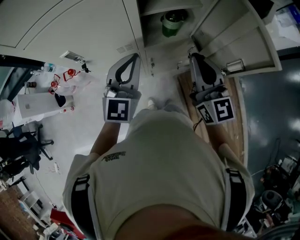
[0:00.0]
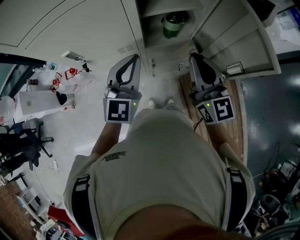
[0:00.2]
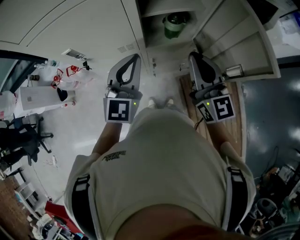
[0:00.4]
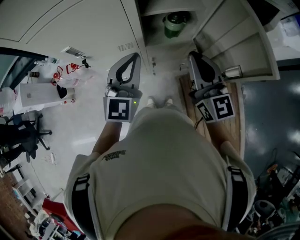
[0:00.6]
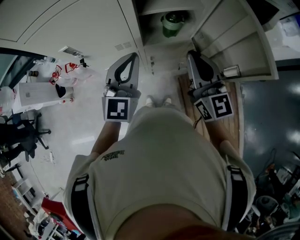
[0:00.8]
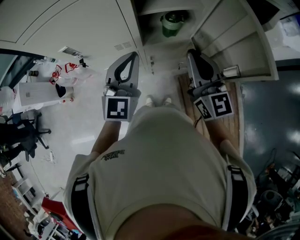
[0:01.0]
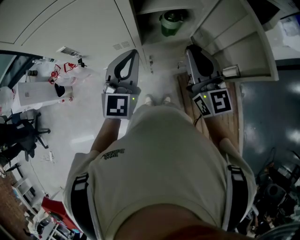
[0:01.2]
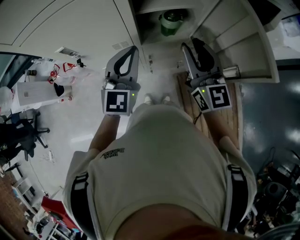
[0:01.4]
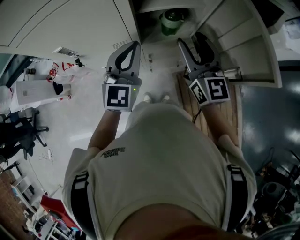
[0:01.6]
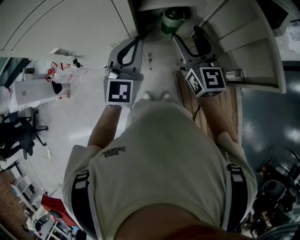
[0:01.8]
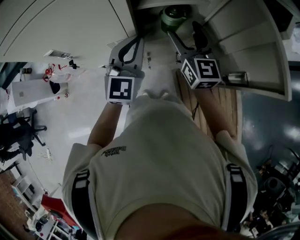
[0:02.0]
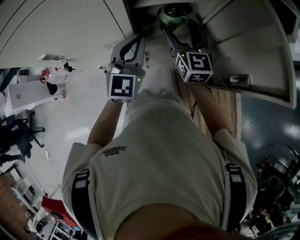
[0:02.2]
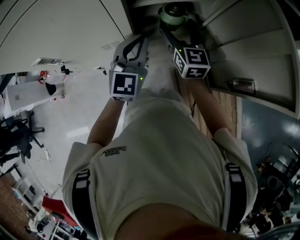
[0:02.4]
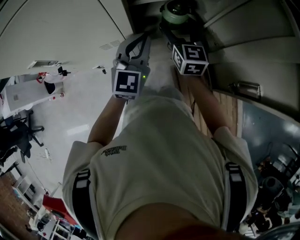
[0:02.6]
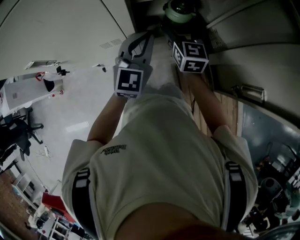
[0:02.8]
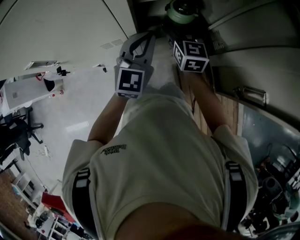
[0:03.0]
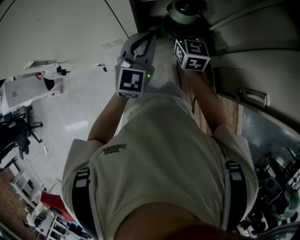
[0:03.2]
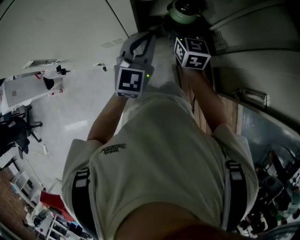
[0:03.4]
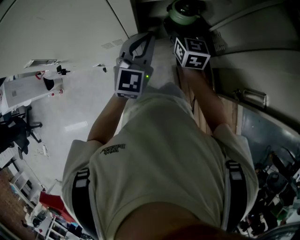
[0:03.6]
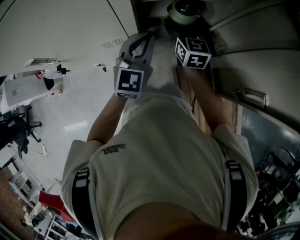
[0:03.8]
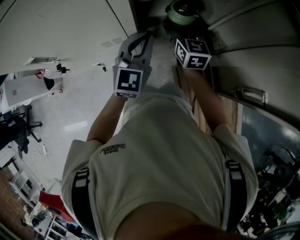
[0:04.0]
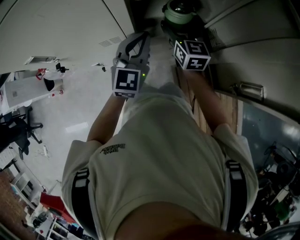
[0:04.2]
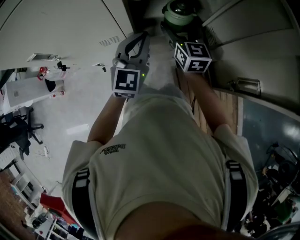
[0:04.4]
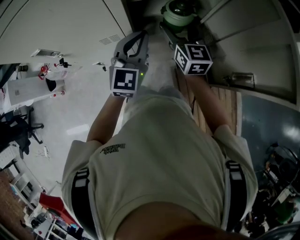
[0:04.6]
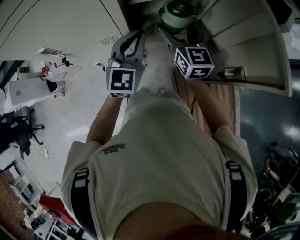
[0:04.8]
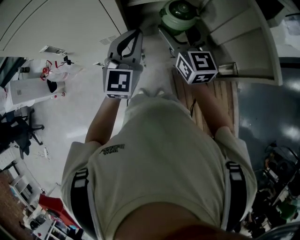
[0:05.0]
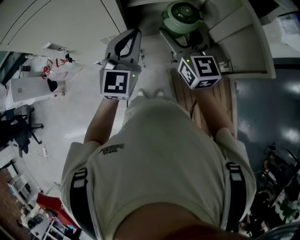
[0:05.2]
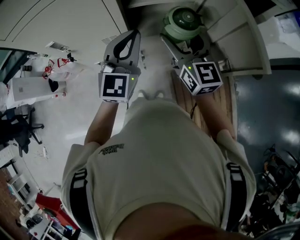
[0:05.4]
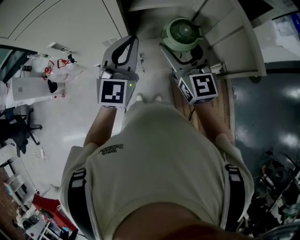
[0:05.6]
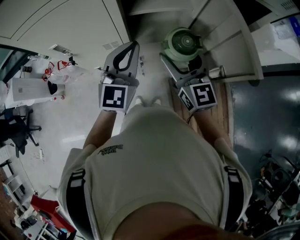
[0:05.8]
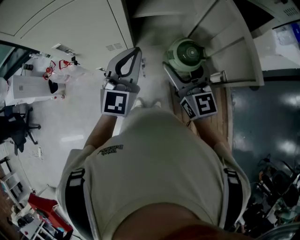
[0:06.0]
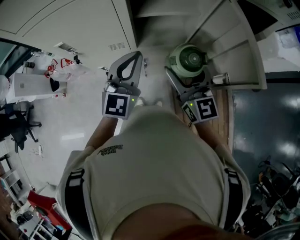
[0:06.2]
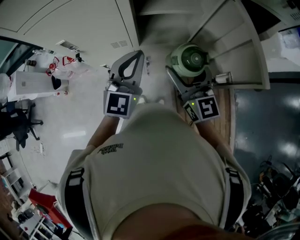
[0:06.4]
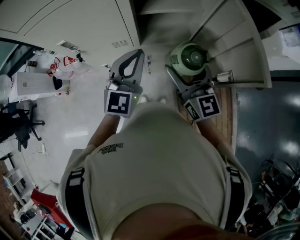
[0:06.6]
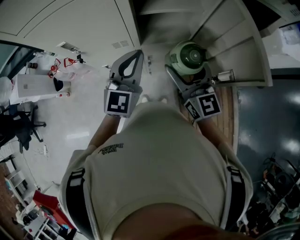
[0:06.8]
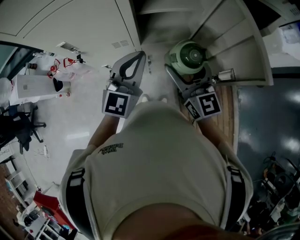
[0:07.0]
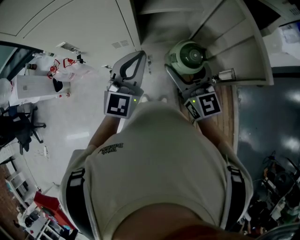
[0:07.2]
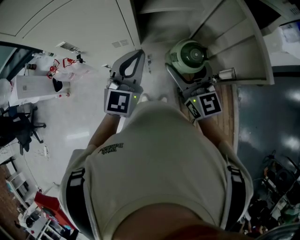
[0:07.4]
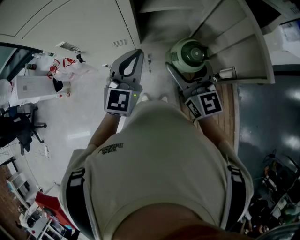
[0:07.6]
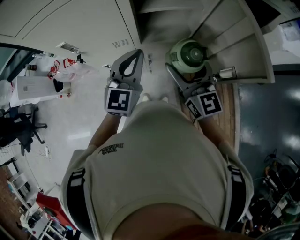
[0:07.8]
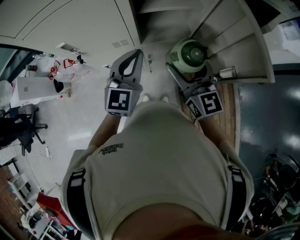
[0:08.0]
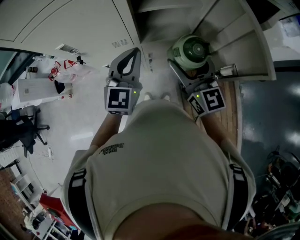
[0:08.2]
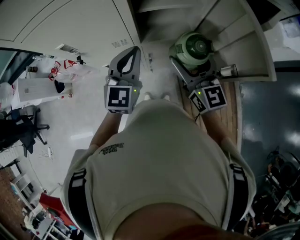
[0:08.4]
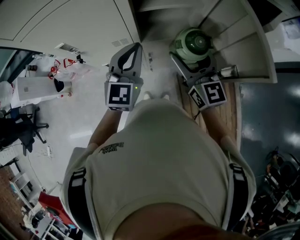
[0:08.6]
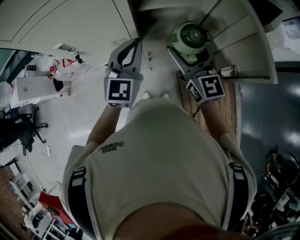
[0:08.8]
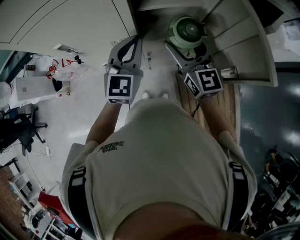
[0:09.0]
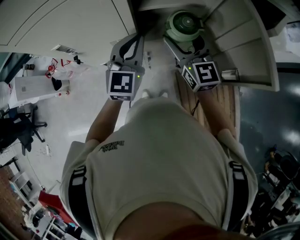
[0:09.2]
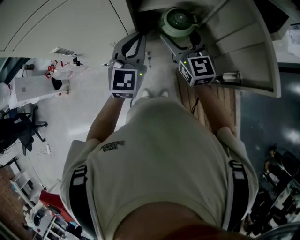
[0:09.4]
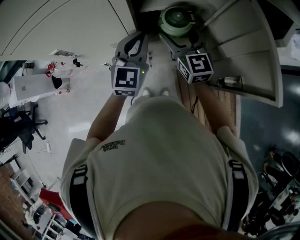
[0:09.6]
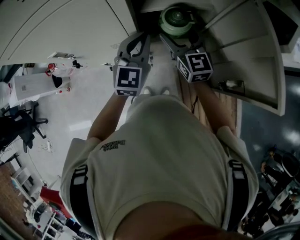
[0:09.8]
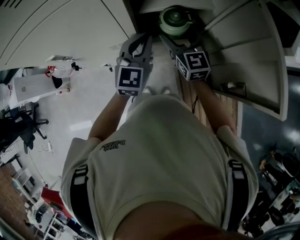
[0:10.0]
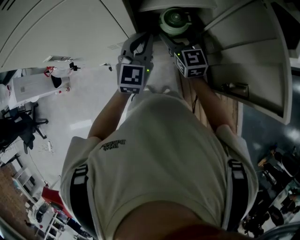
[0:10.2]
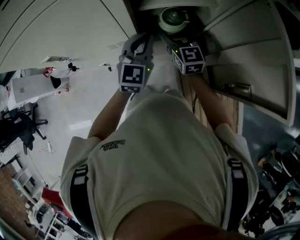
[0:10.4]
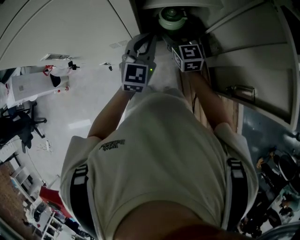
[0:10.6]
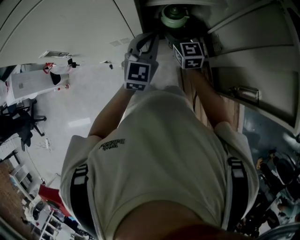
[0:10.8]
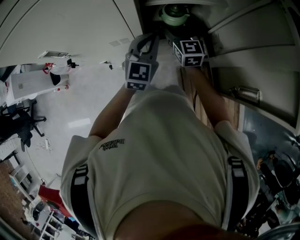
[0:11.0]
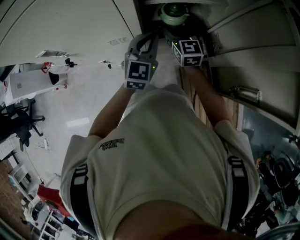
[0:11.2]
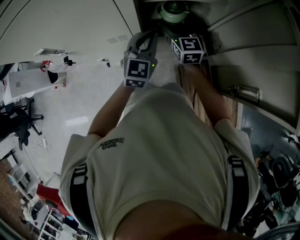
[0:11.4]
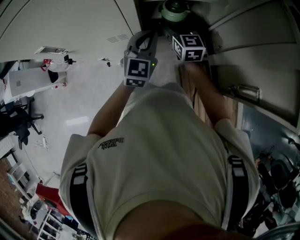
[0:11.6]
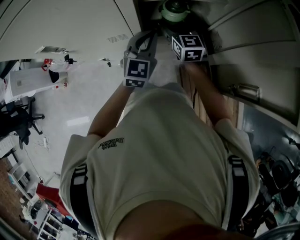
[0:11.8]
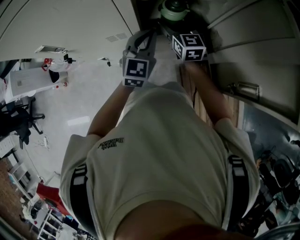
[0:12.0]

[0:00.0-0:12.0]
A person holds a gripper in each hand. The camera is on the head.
0:00.0 to 0:01.6: The right gripper goes some 5 cm forward, and opens.
0:01.6 to 0:03.0: The right gripper travels downward and forward by some 25 cm, and opens; the left gripper is displaced downward and forward by roughly 15 cm.
0:03.0 to 0:04.4: The grippers make only small movements.
0:04.4 to 0:06.0: The left gripper is displaced upward and backward by about 15 cm. The right gripper heads backward and upward, covering about 25 cm.
0:06.0 to 0:07.6: There are only small adjustments of the grippers.
0:07.6 to 0:09.0: The right gripper moves forward, some 5 cm.
0:09.0 to 0:10.4: Both grippers travel together downward and forward, approximately 15 cm.
0:10.4 to 0:12.0: The left gripper moves downward, roughly 5 cm. The right gripper shifts by about 5 cm.

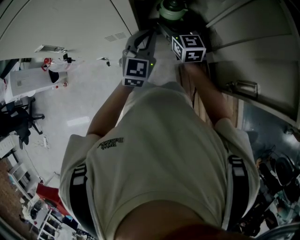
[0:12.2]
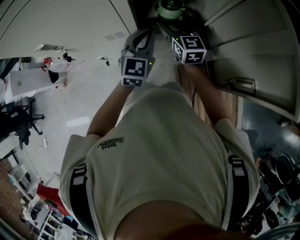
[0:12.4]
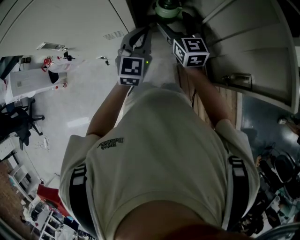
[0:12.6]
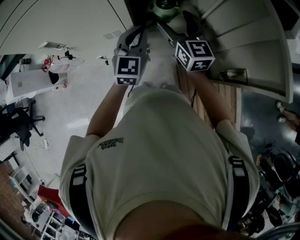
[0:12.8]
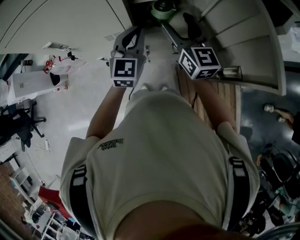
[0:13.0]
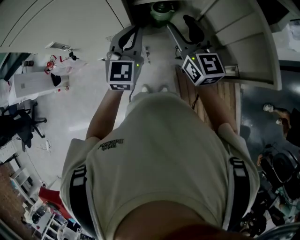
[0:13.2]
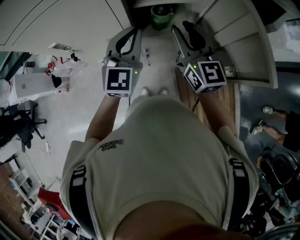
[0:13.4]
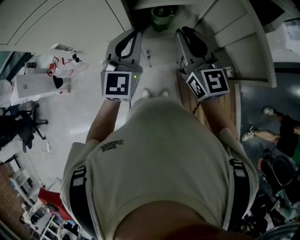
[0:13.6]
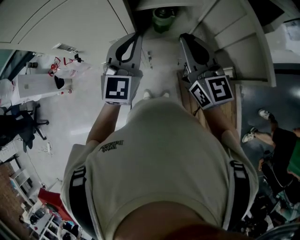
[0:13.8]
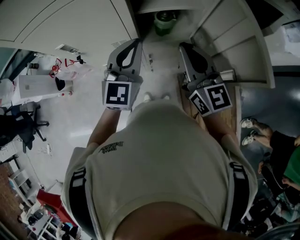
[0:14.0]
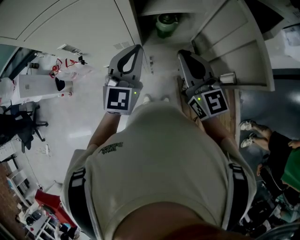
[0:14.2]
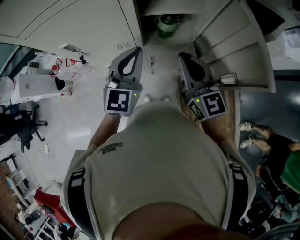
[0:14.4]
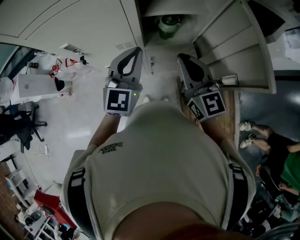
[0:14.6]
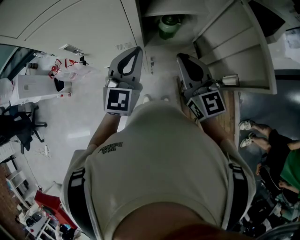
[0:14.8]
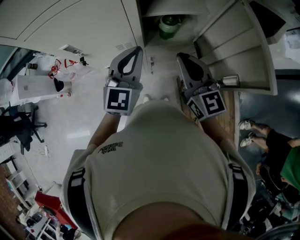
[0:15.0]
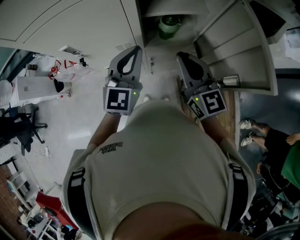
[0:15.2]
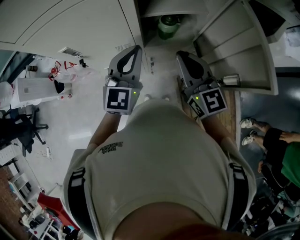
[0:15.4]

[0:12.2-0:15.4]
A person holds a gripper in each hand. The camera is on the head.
0:12.2 to 0:13.8: The two grippers go roughly 20 cm upward and backward. The right gripper closes its fingers.
0:13.8 to 0:15.4: The right gripper ends up roughly 5 cm from where it was.

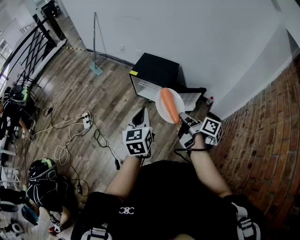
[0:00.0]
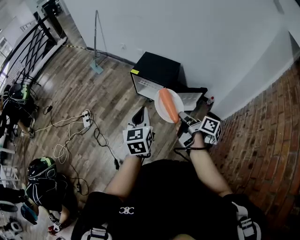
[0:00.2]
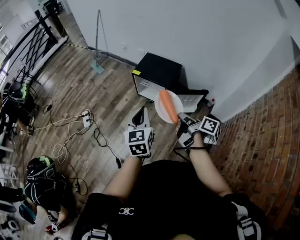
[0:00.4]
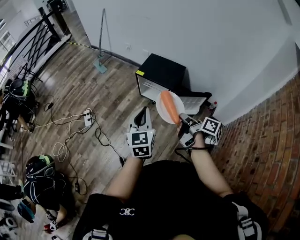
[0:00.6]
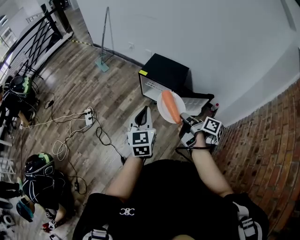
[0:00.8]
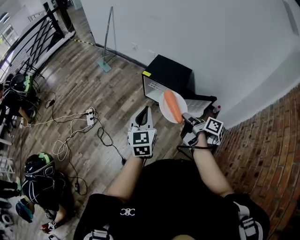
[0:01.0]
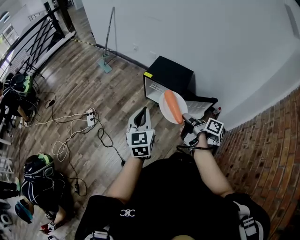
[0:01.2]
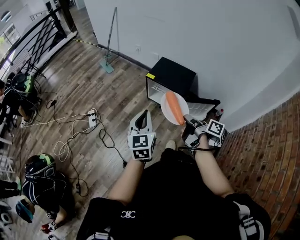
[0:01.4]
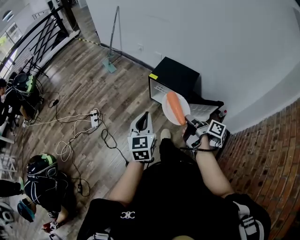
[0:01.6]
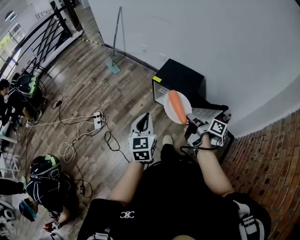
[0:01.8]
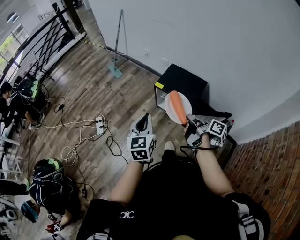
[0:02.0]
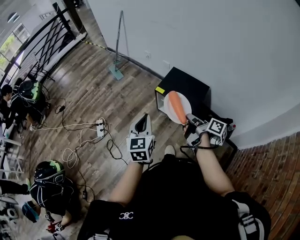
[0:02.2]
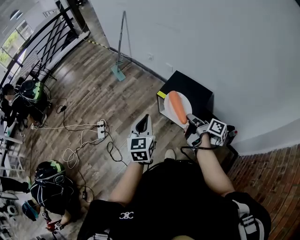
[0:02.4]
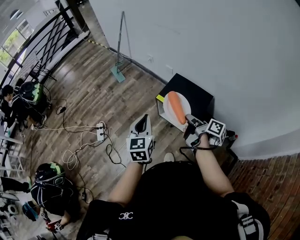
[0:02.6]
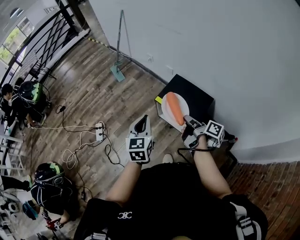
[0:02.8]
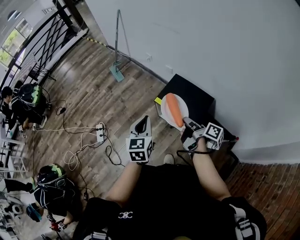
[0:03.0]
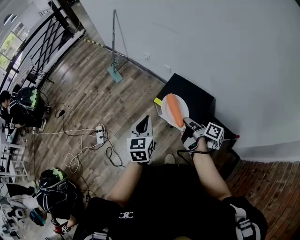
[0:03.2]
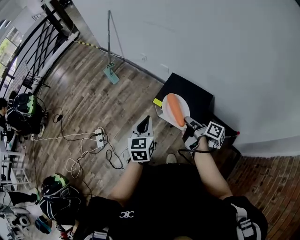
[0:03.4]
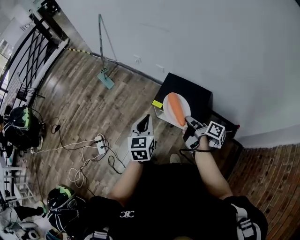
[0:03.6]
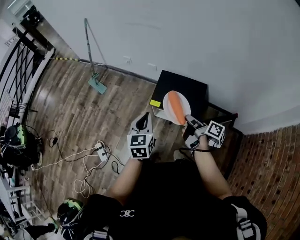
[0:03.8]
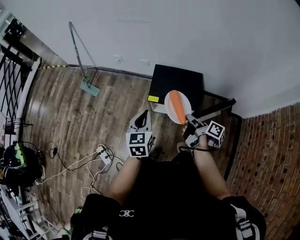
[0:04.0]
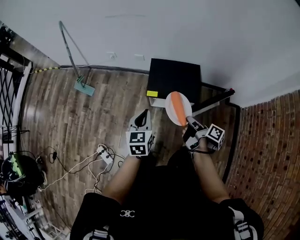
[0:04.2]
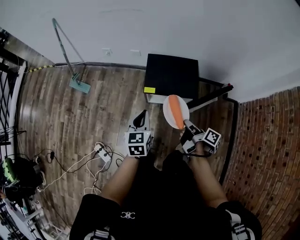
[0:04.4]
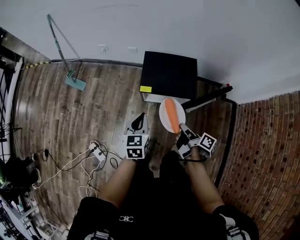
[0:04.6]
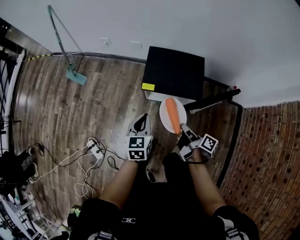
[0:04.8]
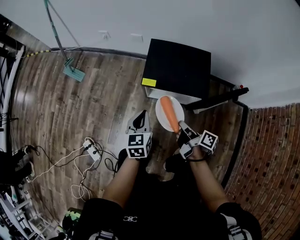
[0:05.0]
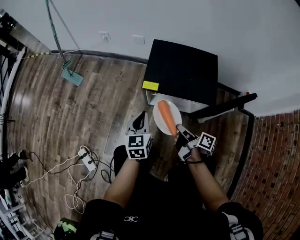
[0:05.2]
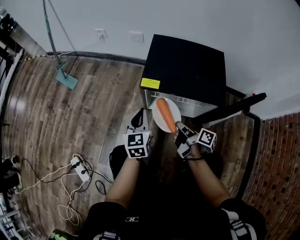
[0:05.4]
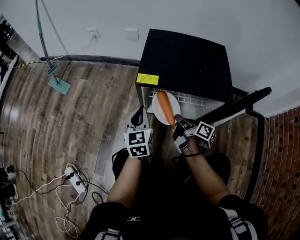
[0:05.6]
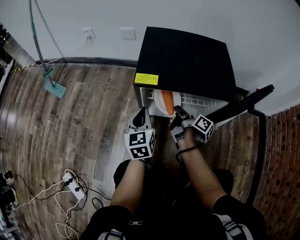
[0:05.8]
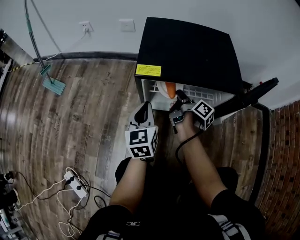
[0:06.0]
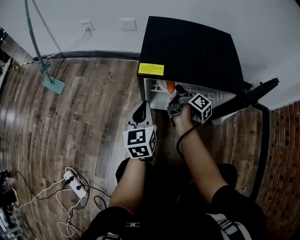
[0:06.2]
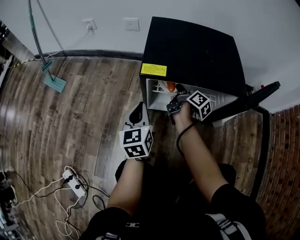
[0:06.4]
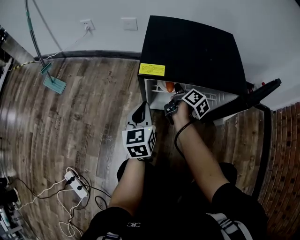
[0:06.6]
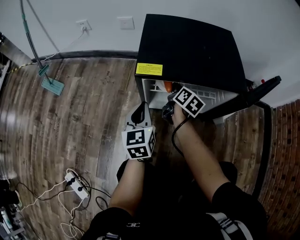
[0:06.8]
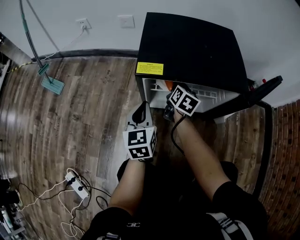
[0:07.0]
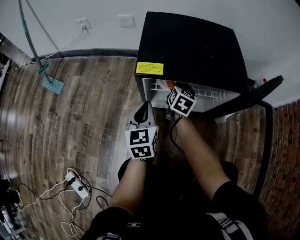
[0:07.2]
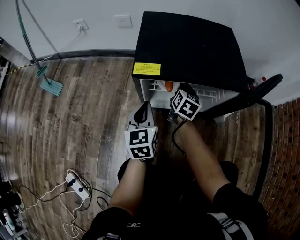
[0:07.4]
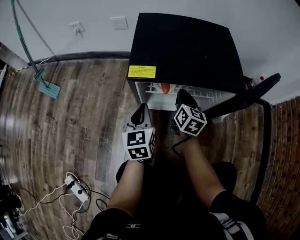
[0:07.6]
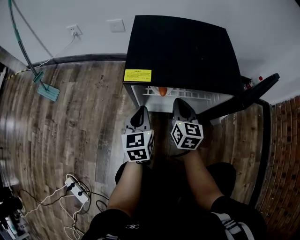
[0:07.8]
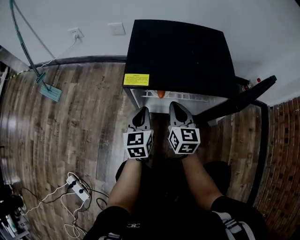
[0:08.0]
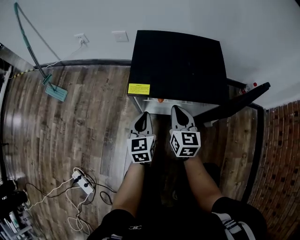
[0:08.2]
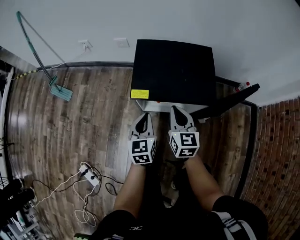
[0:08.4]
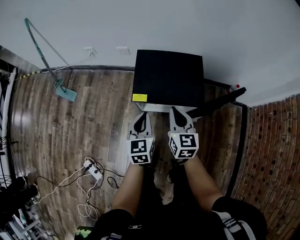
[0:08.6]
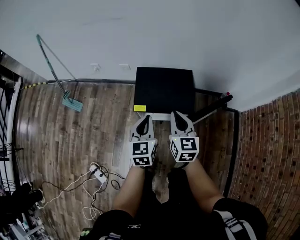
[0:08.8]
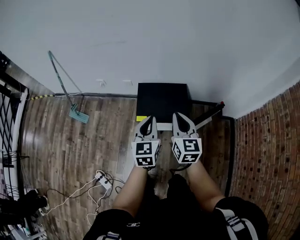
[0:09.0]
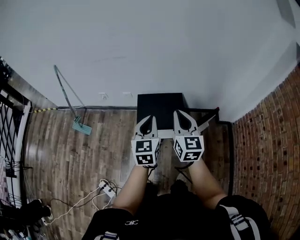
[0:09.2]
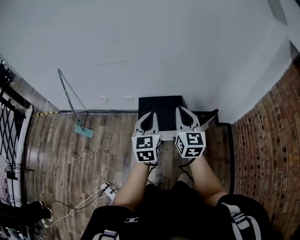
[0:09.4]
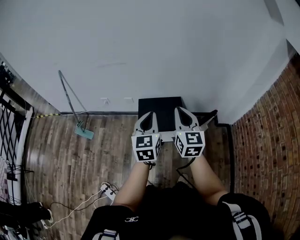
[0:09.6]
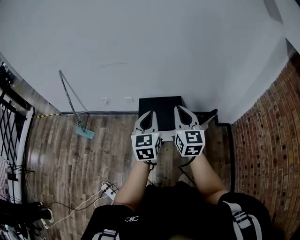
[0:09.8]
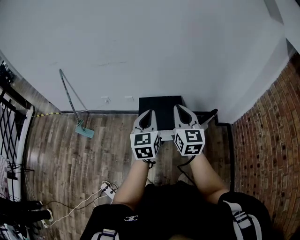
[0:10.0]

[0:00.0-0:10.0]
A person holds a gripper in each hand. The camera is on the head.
0:00.0 to 0:01.4: Both grippers move to the left and forward, approximately 15 cm.
0:01.4 to 0:02.8: The grippers both shift forward by approximately 30 cm.
0:02.8 to 0:04.2: The left gripper ends up approximately 15 cm from where it was, and changes its angle by about 30 degrees, while the right gripper changes place by approximately 10 cm, and swivels about 40 degrees.
0:04.2 to 0:05.8: The two grippers go roughly 50 cm downward.
0:05.8 to 0:07.2: The right gripper travels forward by approximately 10 cm, and rolls counterclockwise, seen from behind, by roughly 60 degrees.
0:07.2 to 0:08.6: Both grippers move upward, some 30 cm. The right gripper turns by approximately 20 degrees.
0:08.6 to 0:10.0: The grippers both shift upward by some 40 cm.
